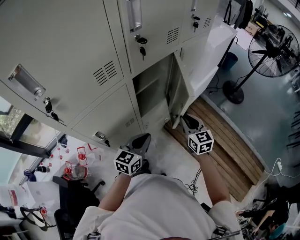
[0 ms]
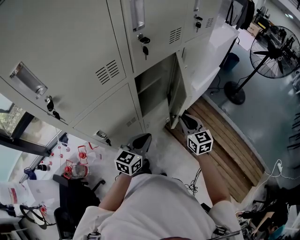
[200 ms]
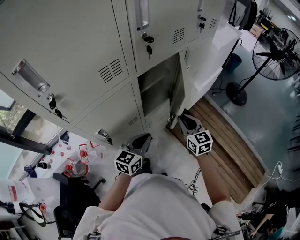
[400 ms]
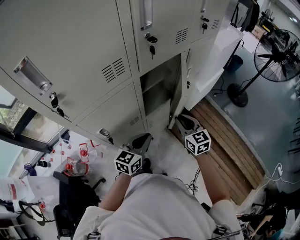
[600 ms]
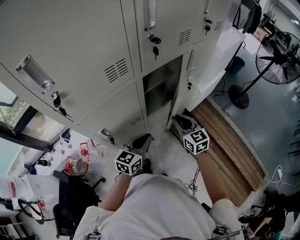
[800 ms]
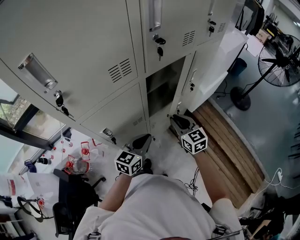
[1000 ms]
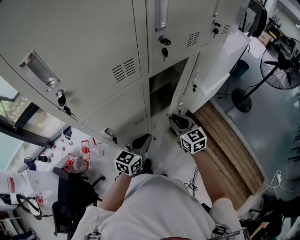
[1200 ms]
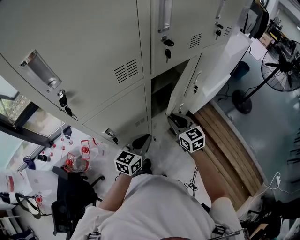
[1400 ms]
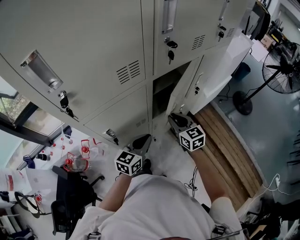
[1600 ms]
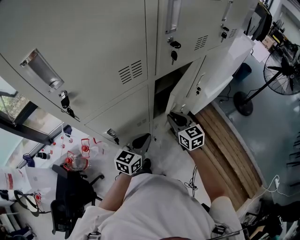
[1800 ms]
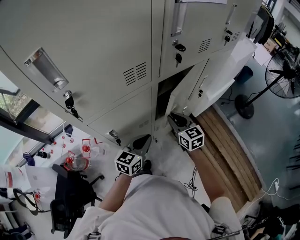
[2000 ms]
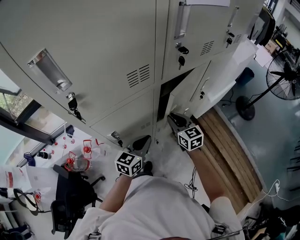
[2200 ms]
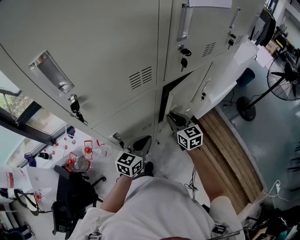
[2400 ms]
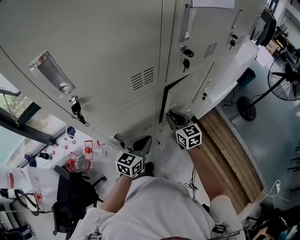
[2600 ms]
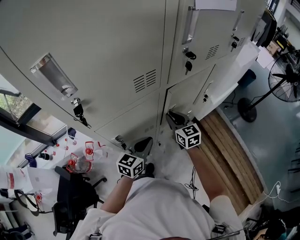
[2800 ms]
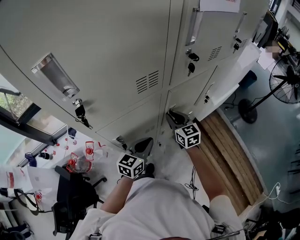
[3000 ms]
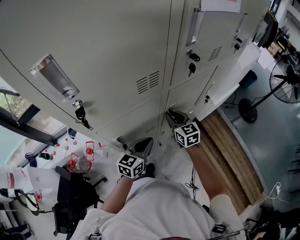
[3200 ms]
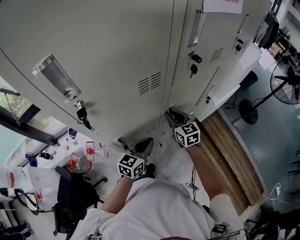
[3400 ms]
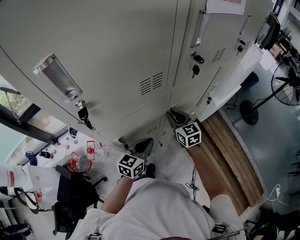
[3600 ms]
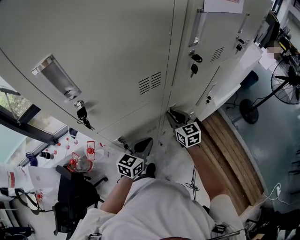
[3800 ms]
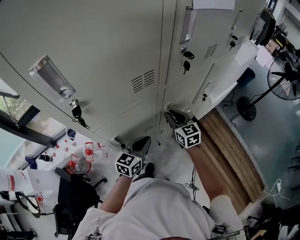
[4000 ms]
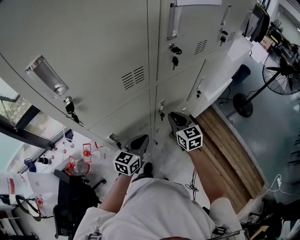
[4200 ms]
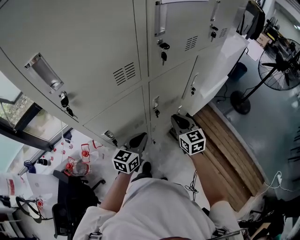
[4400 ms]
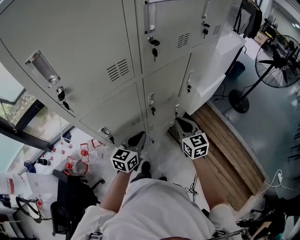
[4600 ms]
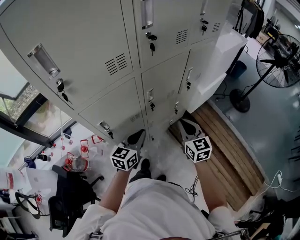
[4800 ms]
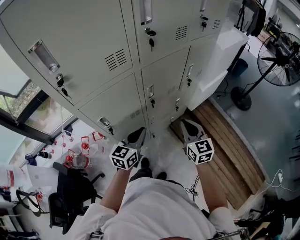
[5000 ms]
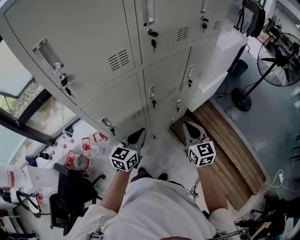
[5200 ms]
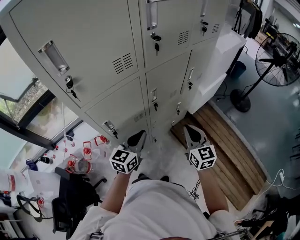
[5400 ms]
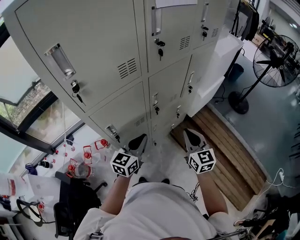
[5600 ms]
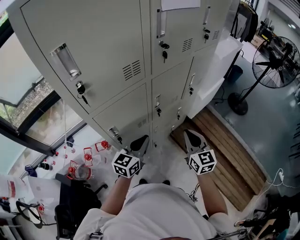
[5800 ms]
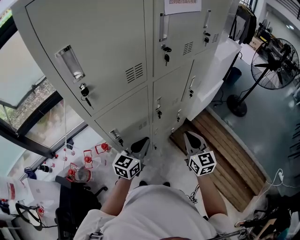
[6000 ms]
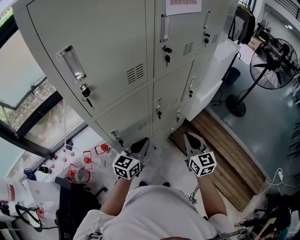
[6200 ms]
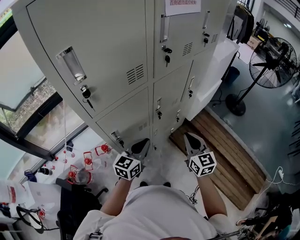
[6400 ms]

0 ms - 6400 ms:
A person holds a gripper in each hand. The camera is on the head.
0 ms - 1600 ms: The left gripper is displaced to the left by roughly 5 cm. Meanwhile the right gripper moves to the left, roughly 15 cm.
1600 ms - 3200 ms: The right gripper heads to the left and forward, covering some 10 cm.
3200 ms - 4800 ms: The right gripper heads to the right and backward, covering roughly 20 cm; the left gripper shifts approximately 5 cm to the right.
4800 ms - 6400 ms: The right gripper goes some 5 cm backward, while the left gripper moves roughly 5 cm.

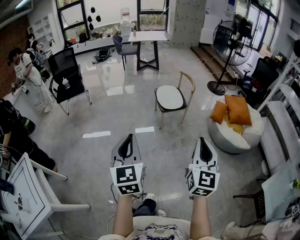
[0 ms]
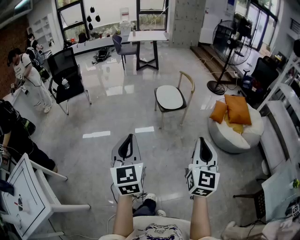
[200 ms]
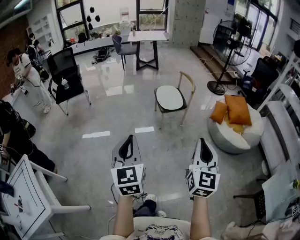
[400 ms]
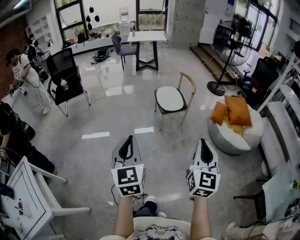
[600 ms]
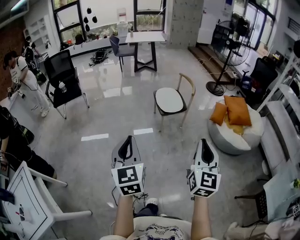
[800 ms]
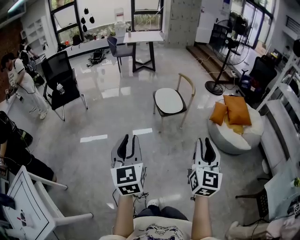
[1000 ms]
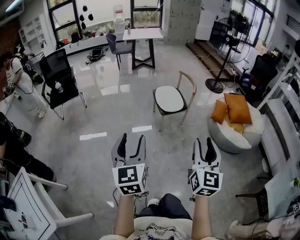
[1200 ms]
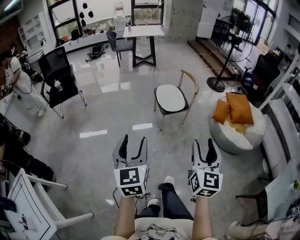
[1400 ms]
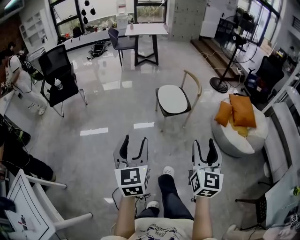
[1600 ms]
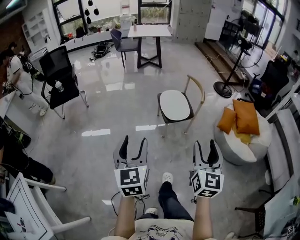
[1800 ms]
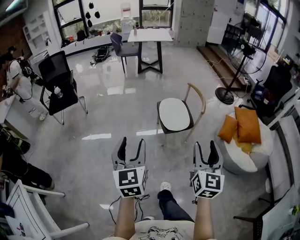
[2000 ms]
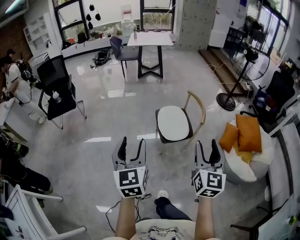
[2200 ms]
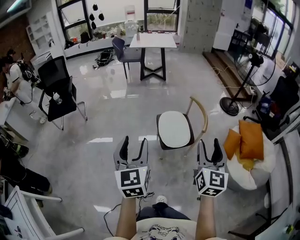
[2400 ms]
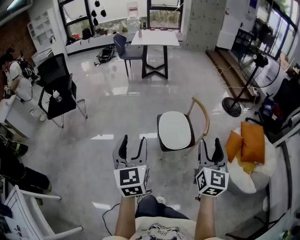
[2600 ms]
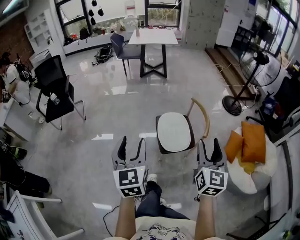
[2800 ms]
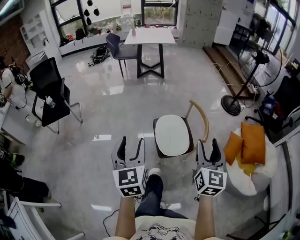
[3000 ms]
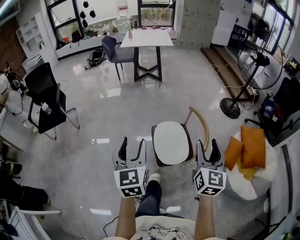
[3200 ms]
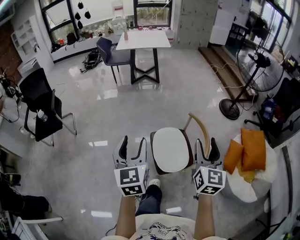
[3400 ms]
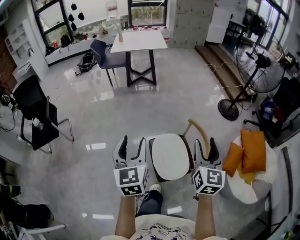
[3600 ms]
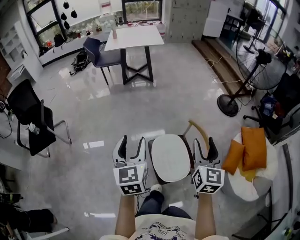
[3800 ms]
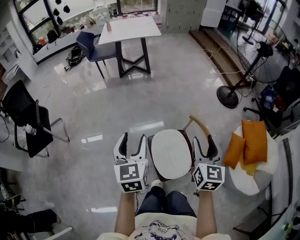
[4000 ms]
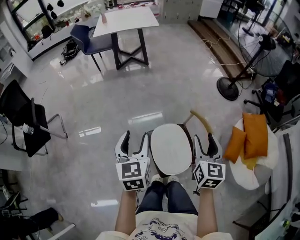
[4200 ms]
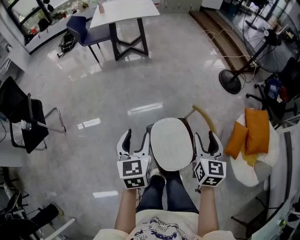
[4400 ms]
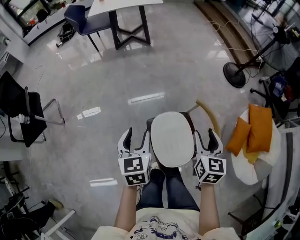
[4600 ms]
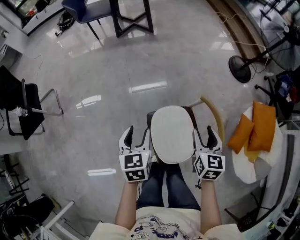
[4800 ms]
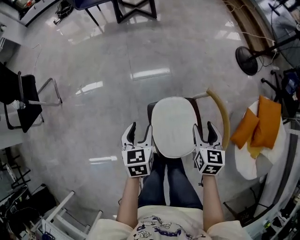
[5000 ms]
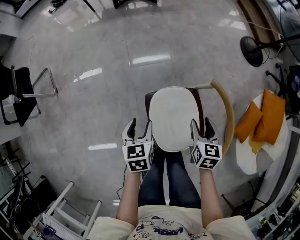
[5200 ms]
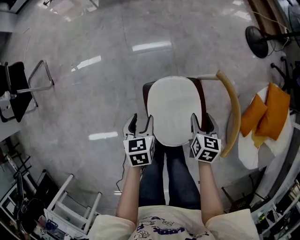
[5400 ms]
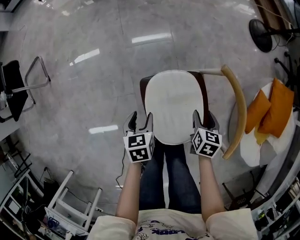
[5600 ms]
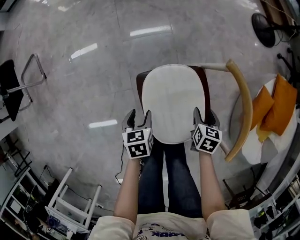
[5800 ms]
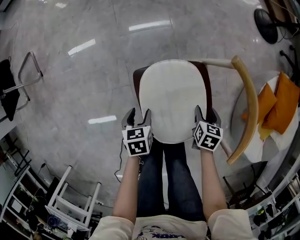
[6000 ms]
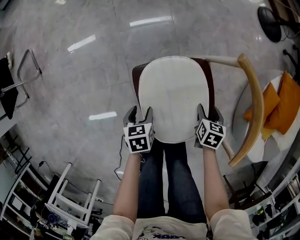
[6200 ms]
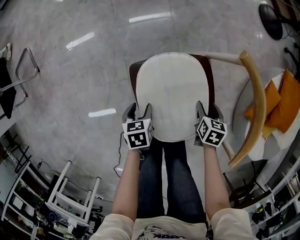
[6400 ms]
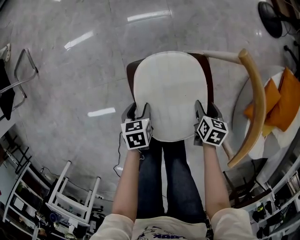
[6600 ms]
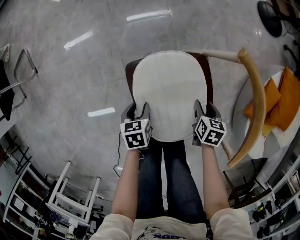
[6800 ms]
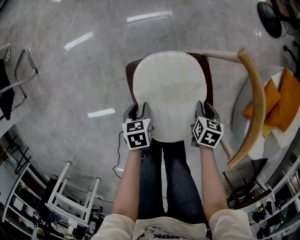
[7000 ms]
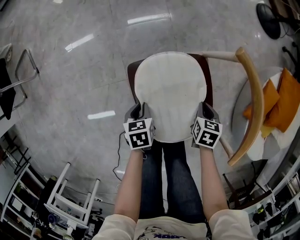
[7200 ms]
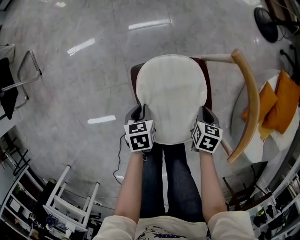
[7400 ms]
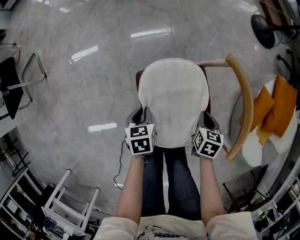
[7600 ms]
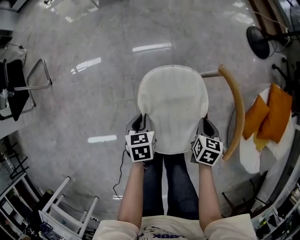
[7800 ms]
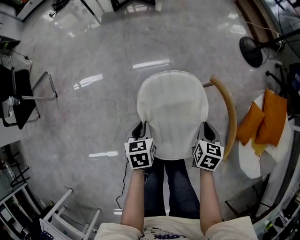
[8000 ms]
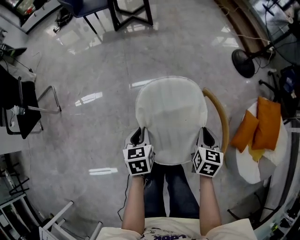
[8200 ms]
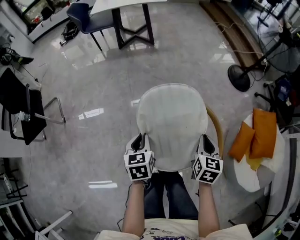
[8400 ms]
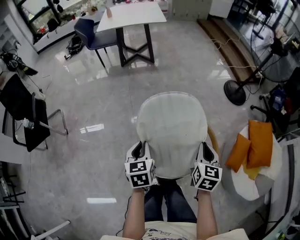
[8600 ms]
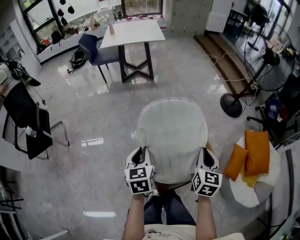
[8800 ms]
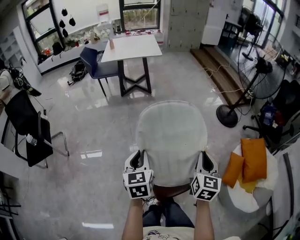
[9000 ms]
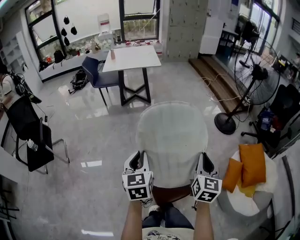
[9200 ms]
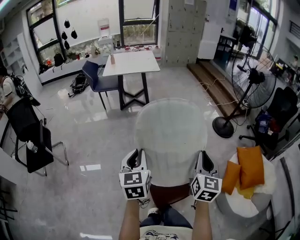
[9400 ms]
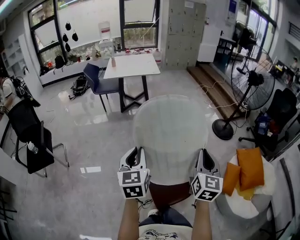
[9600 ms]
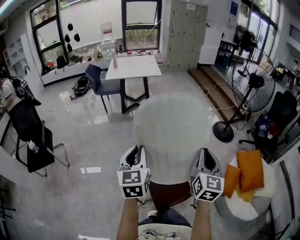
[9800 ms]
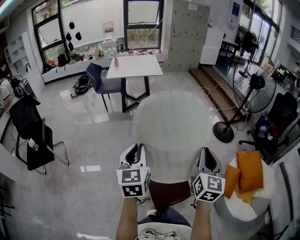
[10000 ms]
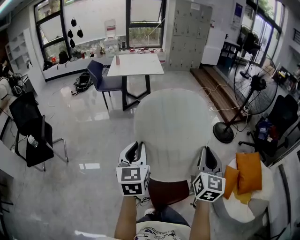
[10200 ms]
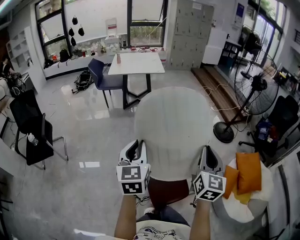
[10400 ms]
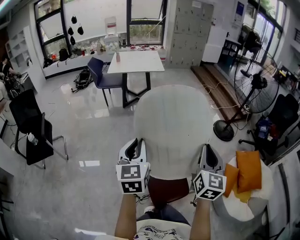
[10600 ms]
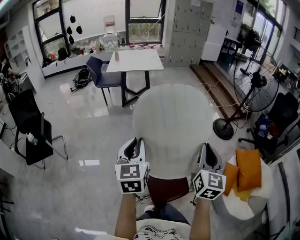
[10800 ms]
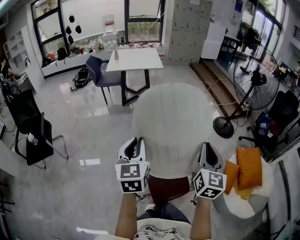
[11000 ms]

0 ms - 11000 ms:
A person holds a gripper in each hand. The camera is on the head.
0 ms - 1600 ms: The two grippers go some 20 cm forward. The left gripper opens, while the right gripper opens.
1600 ms - 3200 ms: Both grippers are carried forward, about 60 cm.
3200 ms - 4800 ms: The two grippers go approximately 50 cm forward and downward. The right gripper rotates approximately 30 degrees. The left gripper rotates about 30 degrees.
4800 ms - 6200 ms: Both grippers travel together downward, some 40 cm. The right gripper tilts its fingers about 30 degrees downward, while the left gripper changes its angle by some 30 degrees.
6200 ms - 7800 ms: Both grippers move upward, some 15 cm. The right gripper closes up; the left gripper closes its fingers.
7800 ms - 9400 ms: Both grippers move upward, approximately 60 cm. The right gripper angles its fingers upward, by roughly 50 degrees. Meanwhile the left gripper points its fingers roughly 40 degrees further upward.
9400 ms - 11000 ms: The grippers stay close to where they were, moving slightly.

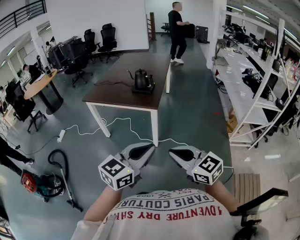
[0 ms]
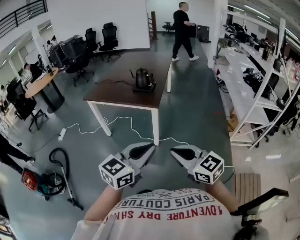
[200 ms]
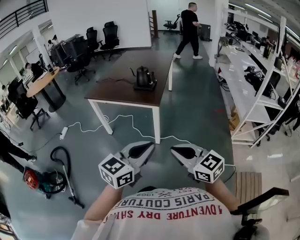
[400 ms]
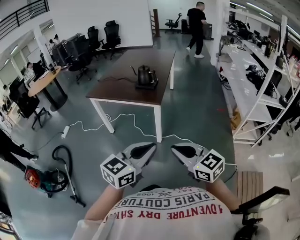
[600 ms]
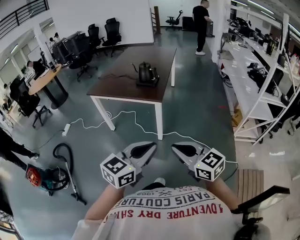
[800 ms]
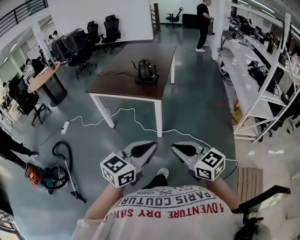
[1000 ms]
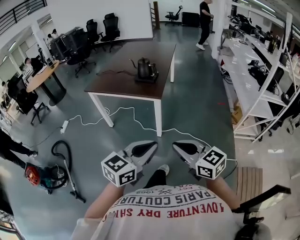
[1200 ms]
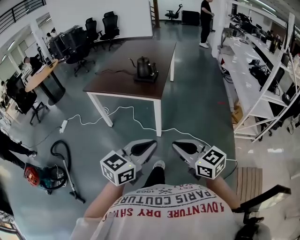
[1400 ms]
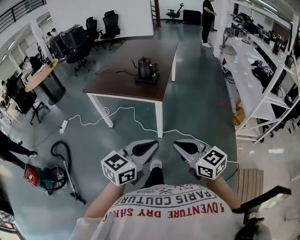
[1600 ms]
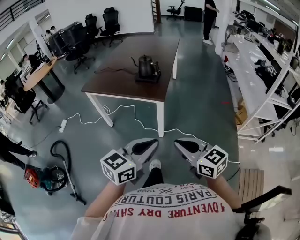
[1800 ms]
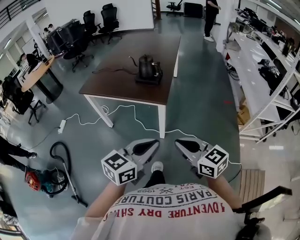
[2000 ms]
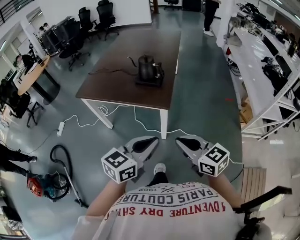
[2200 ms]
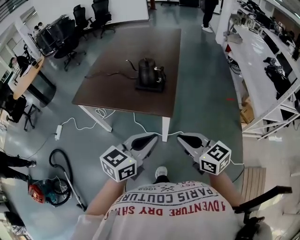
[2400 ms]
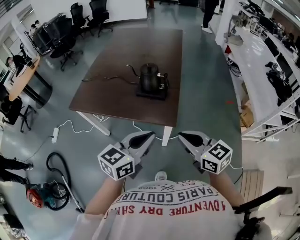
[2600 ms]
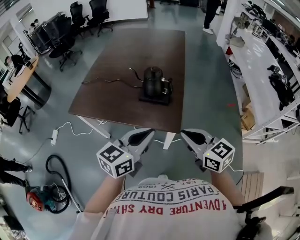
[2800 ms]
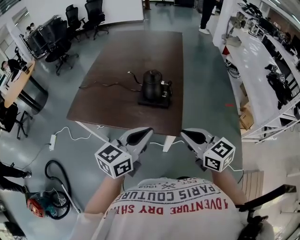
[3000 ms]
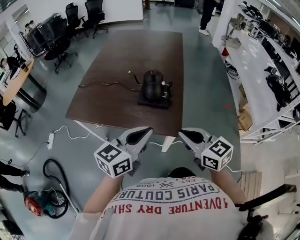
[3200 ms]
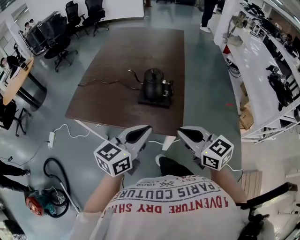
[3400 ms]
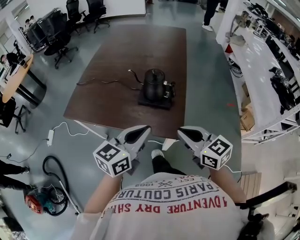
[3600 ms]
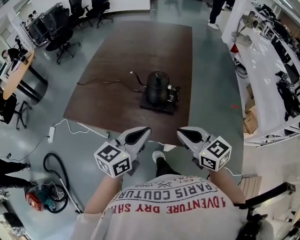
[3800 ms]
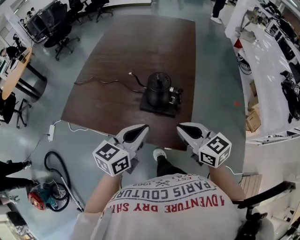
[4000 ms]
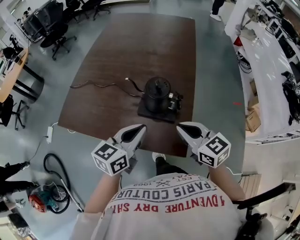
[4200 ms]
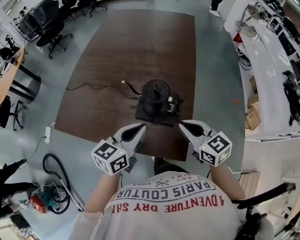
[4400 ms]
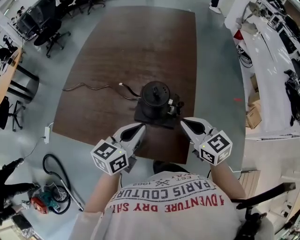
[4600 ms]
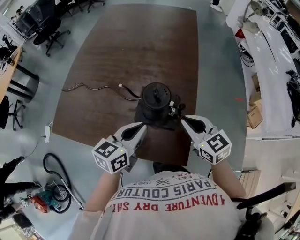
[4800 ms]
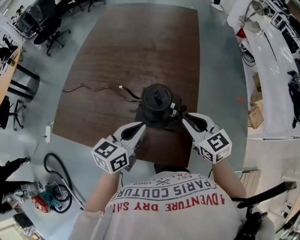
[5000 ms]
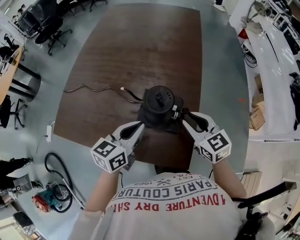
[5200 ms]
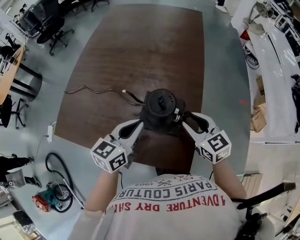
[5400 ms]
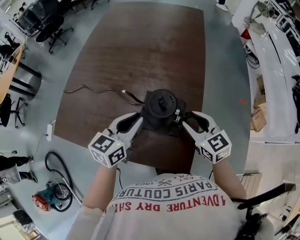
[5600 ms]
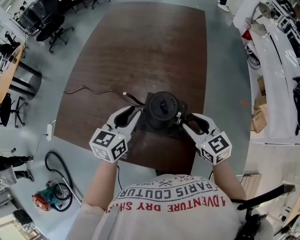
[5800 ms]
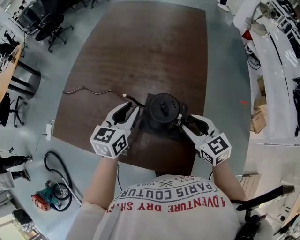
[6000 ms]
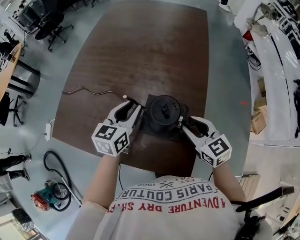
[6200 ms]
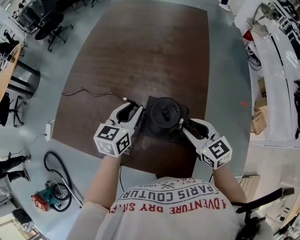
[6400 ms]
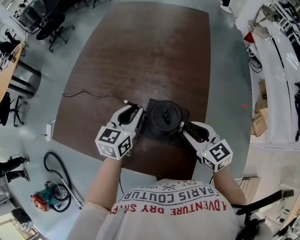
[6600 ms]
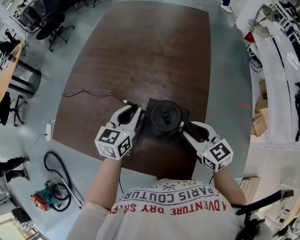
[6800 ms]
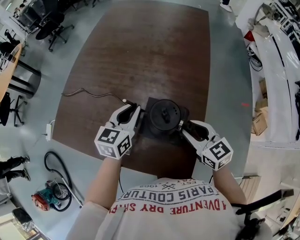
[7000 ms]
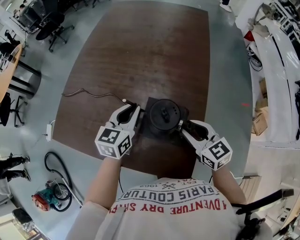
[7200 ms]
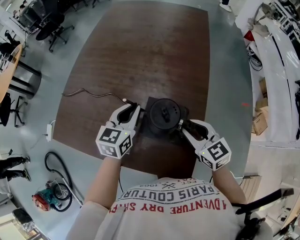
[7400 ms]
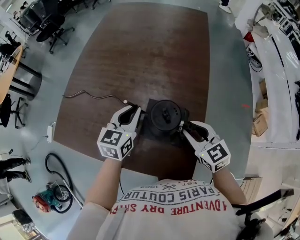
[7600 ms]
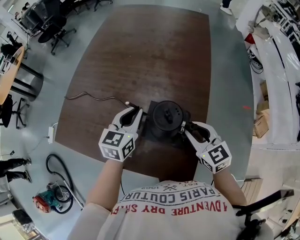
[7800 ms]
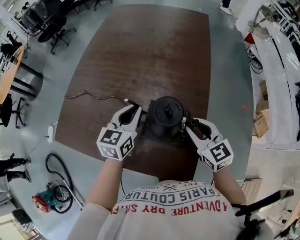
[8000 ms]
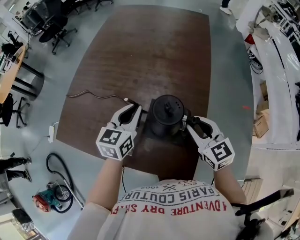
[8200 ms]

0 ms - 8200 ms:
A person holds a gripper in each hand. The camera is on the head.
0 ms - 1600 ms: The left gripper moves about 5 cm. The right gripper goes approximately 5 cm forward.
1600 ms - 3200 ms: The two grippers go about 35 cm forward.
3200 ms - 5000 ms: Both grippers move forward and downward, roughly 25 cm.
5000 ms - 6600 ms: The left gripper goes some 10 cm forward, and opens up.
6600 ms - 8200 ms: The grippers stay close to where they were, moving slightly.
